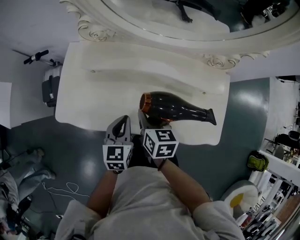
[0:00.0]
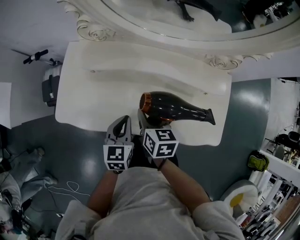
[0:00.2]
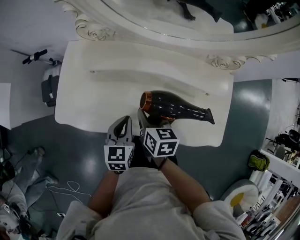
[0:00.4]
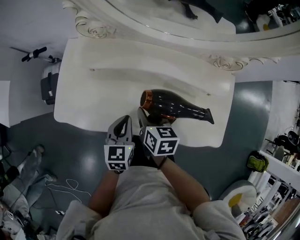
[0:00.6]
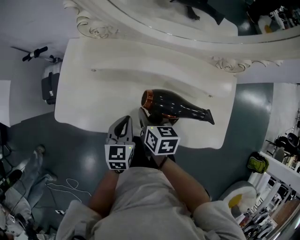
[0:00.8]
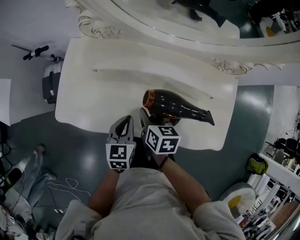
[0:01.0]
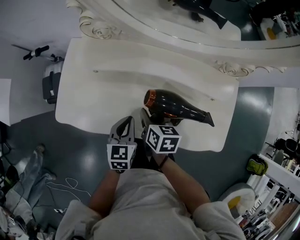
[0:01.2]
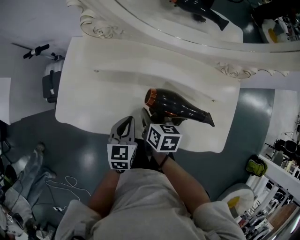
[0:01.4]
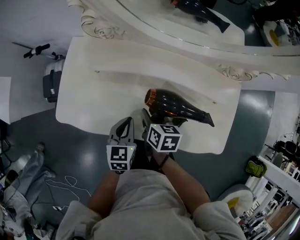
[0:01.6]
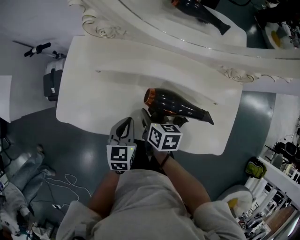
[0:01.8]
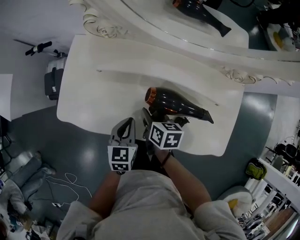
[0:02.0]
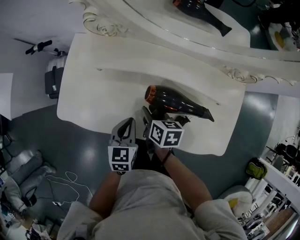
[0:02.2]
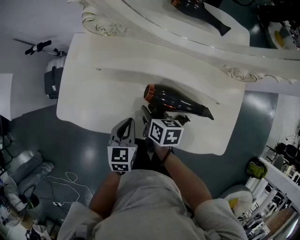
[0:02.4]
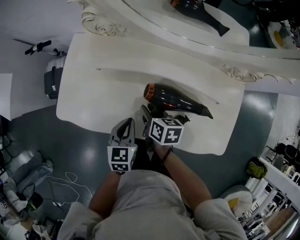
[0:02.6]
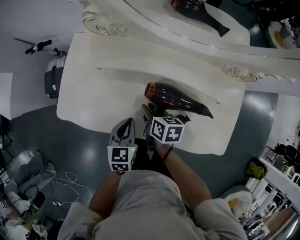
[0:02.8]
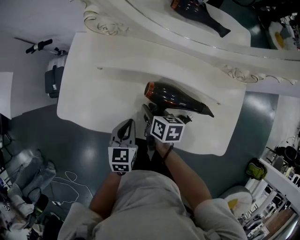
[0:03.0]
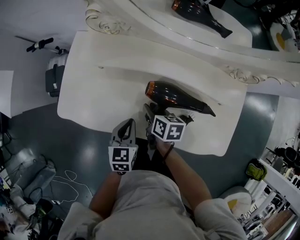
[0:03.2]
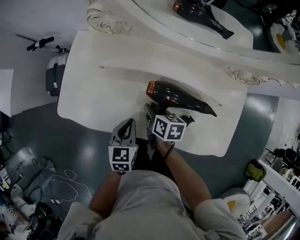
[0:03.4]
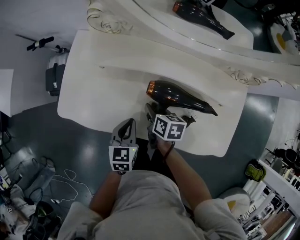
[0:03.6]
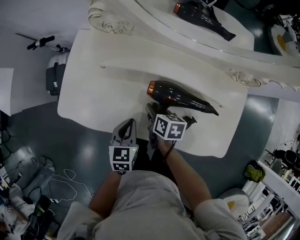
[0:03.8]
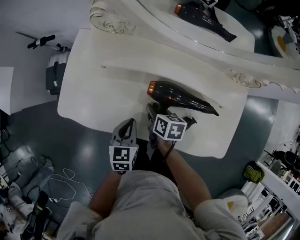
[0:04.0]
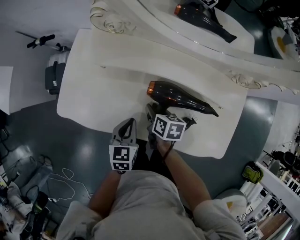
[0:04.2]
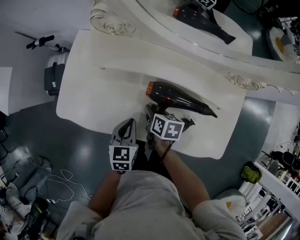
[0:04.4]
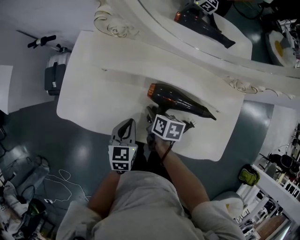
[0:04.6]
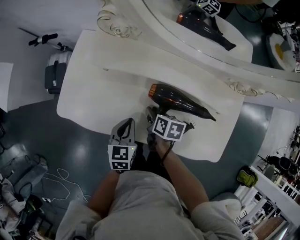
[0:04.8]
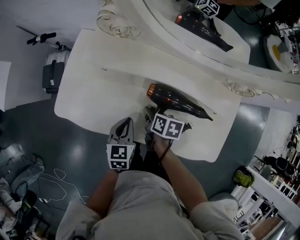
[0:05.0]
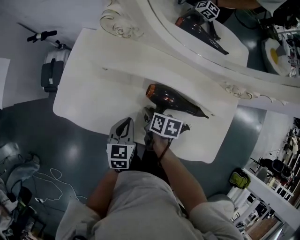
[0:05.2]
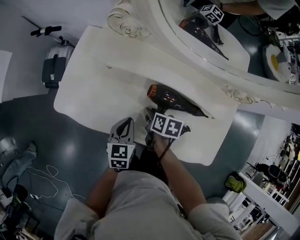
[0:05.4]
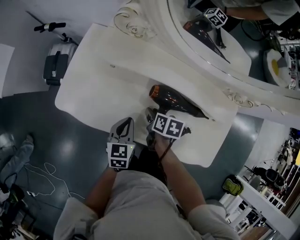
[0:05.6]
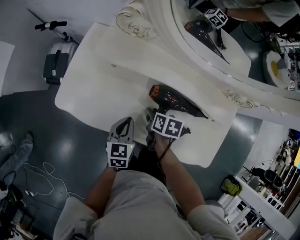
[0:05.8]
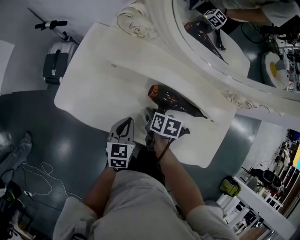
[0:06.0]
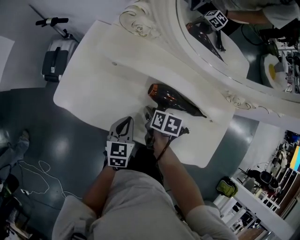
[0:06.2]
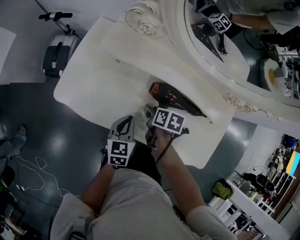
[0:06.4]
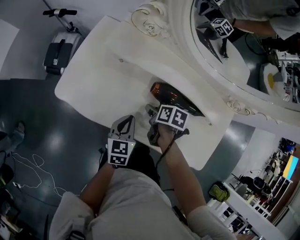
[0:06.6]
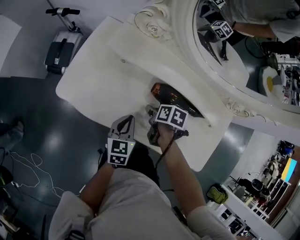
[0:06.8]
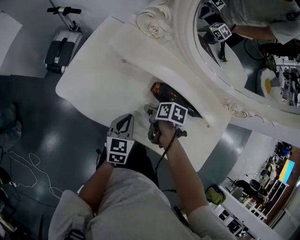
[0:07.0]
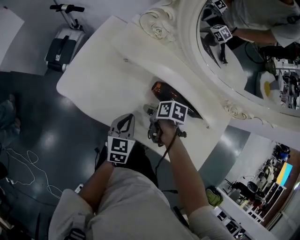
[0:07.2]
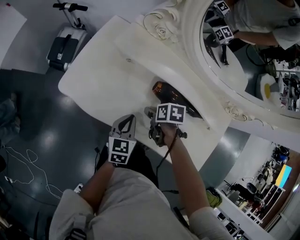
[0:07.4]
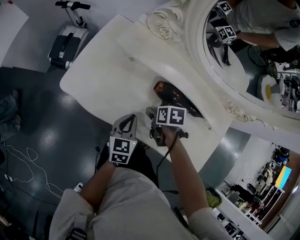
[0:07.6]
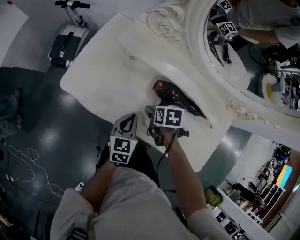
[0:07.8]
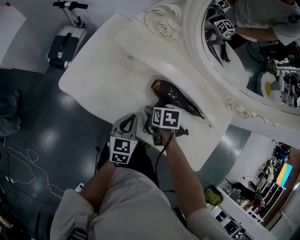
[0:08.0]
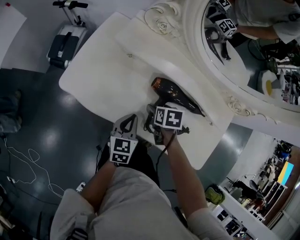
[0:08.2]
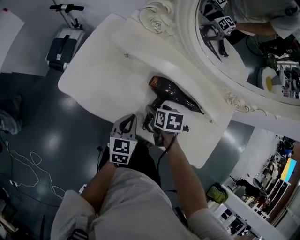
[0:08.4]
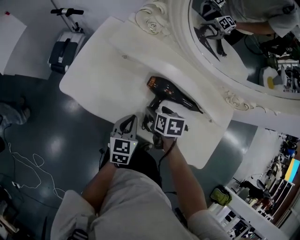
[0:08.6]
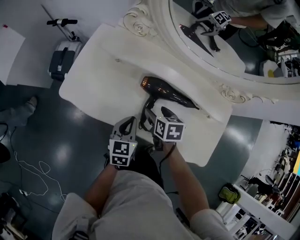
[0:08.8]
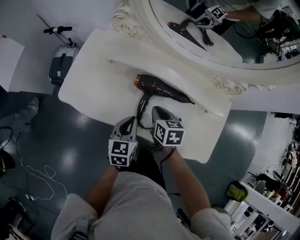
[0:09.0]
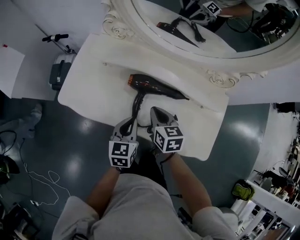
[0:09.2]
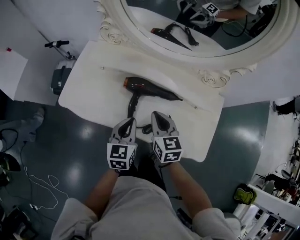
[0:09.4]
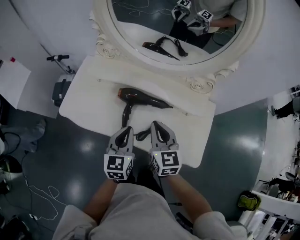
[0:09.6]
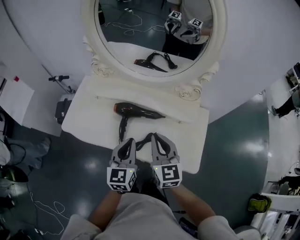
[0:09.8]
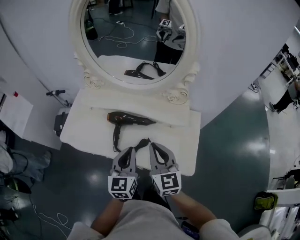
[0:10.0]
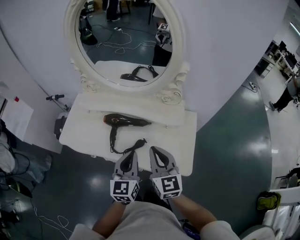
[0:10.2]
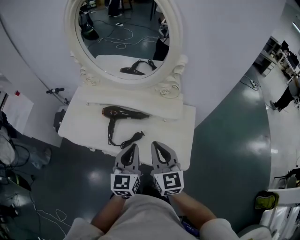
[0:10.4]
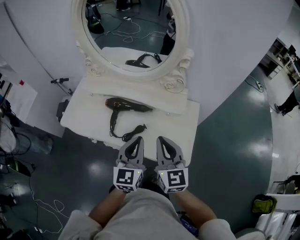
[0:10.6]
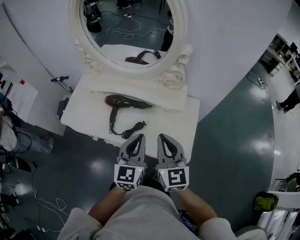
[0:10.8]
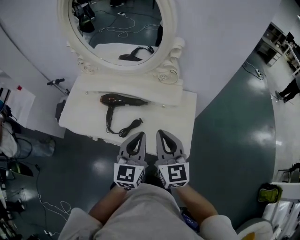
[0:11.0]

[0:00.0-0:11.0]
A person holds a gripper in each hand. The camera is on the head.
0:00.0 to 0:01.6: The two grippers go approximately 5 cm downward.
0:01.6 to 0:06.2: The grippers stay close to where they were, moving slightly.
0:06.2 to 0:07.8: The right gripper rotates some 20 degrees, and opens.
0:07.8 to 0:09.4: Both grippers travel together upward, to the right and backward, roughly 20 cm. The right gripper angles its fingers upward, by some 40 degrees, and closes its fingers.
0:09.4 to 0:11.0: Both grippers move to the right, upward and backward, approximately 30 cm. The right gripper swivels about 30 degrees. Meanwhile the left gripper swivels some 20 degrees.

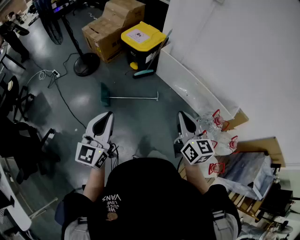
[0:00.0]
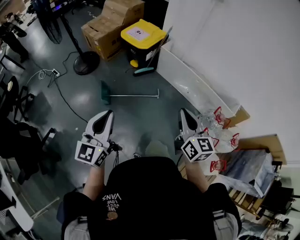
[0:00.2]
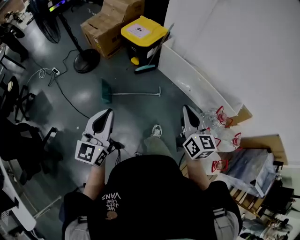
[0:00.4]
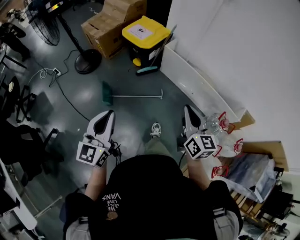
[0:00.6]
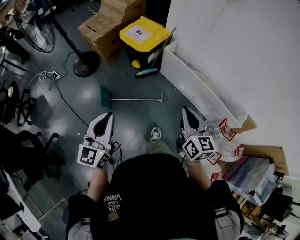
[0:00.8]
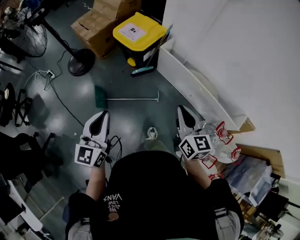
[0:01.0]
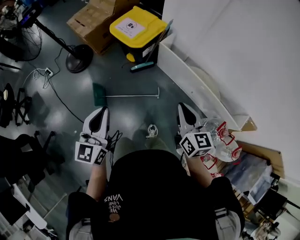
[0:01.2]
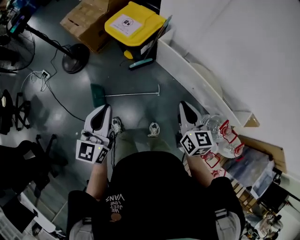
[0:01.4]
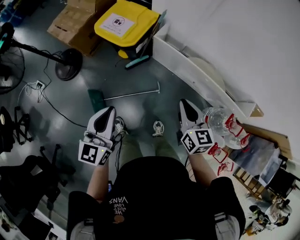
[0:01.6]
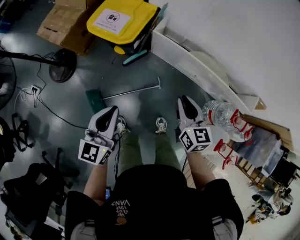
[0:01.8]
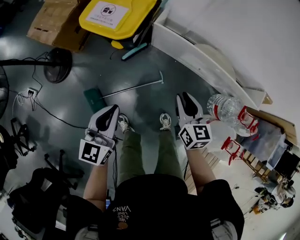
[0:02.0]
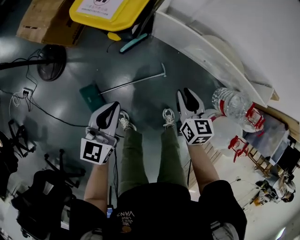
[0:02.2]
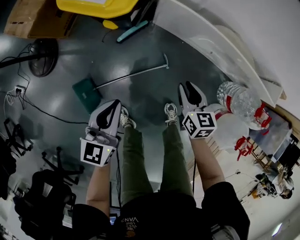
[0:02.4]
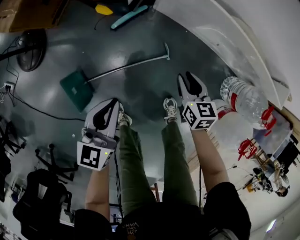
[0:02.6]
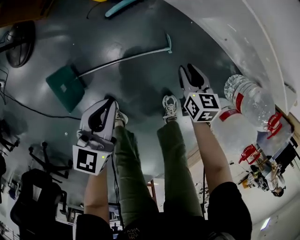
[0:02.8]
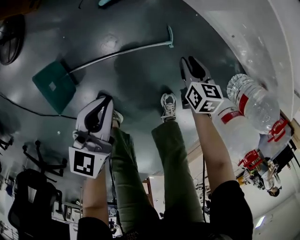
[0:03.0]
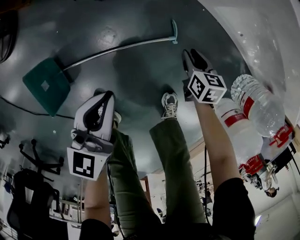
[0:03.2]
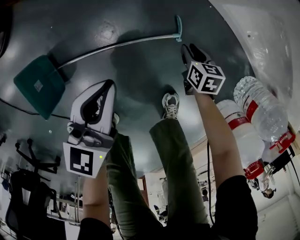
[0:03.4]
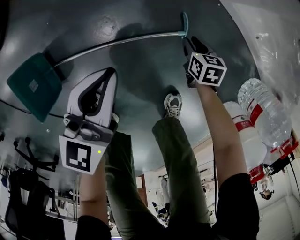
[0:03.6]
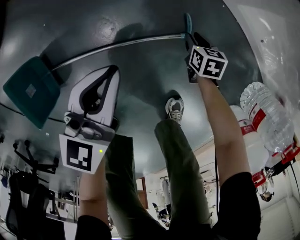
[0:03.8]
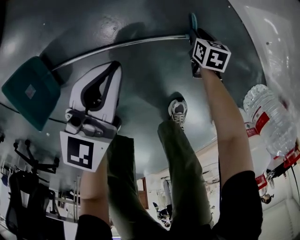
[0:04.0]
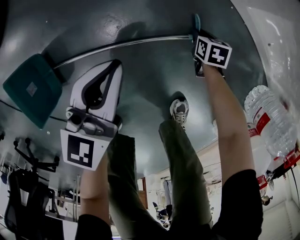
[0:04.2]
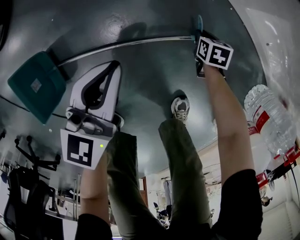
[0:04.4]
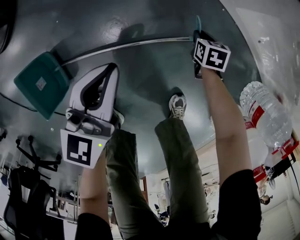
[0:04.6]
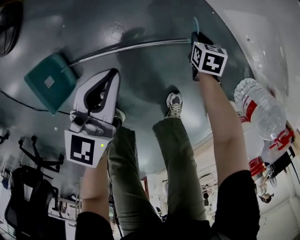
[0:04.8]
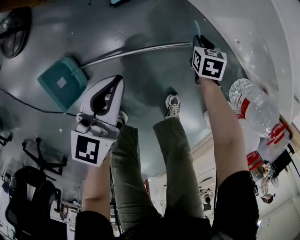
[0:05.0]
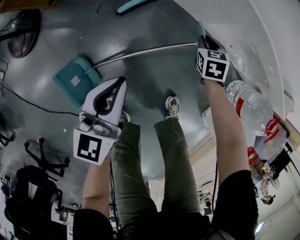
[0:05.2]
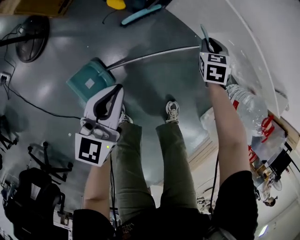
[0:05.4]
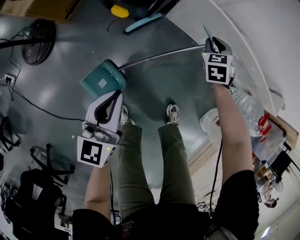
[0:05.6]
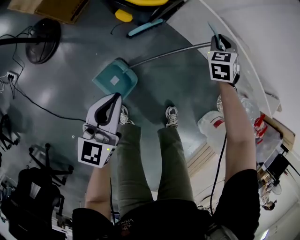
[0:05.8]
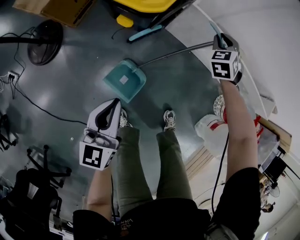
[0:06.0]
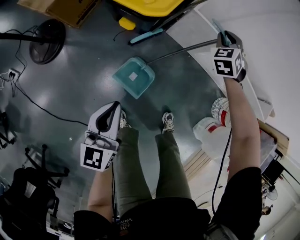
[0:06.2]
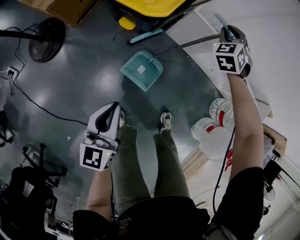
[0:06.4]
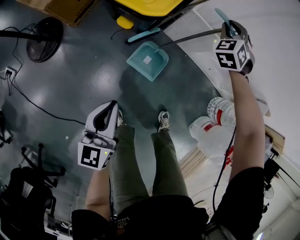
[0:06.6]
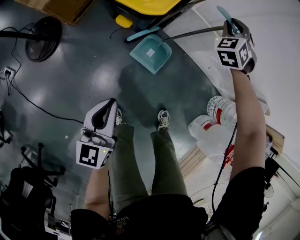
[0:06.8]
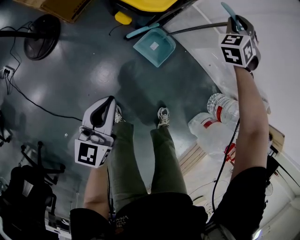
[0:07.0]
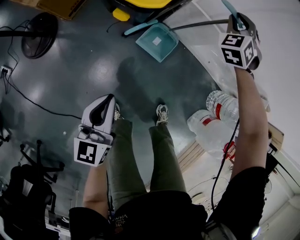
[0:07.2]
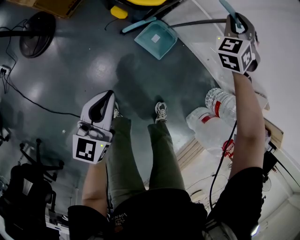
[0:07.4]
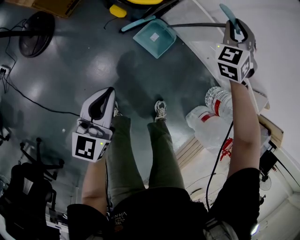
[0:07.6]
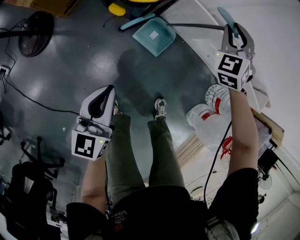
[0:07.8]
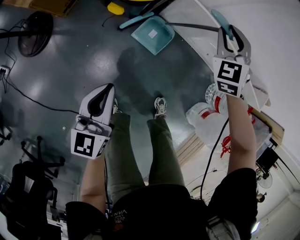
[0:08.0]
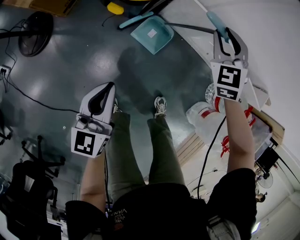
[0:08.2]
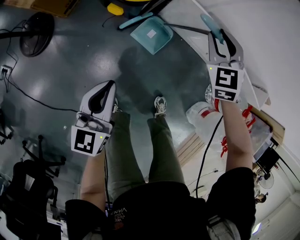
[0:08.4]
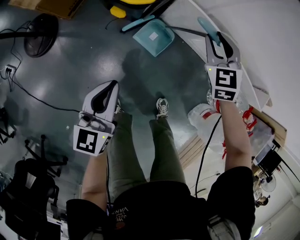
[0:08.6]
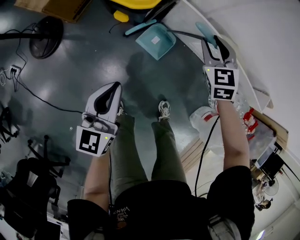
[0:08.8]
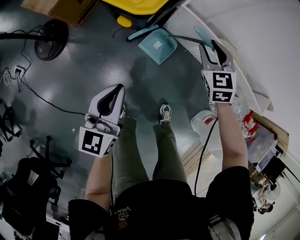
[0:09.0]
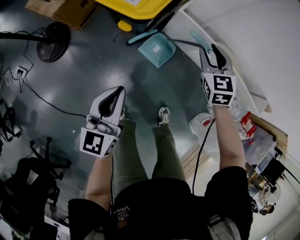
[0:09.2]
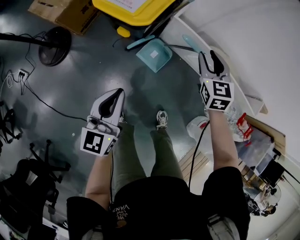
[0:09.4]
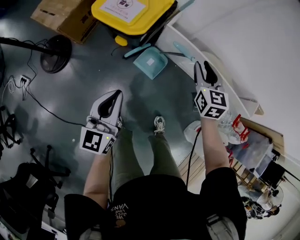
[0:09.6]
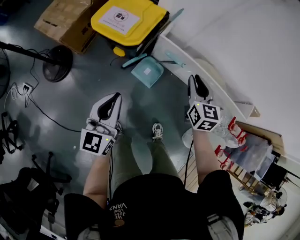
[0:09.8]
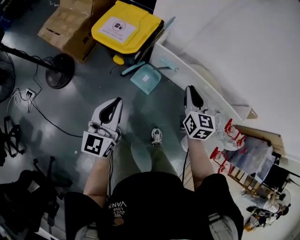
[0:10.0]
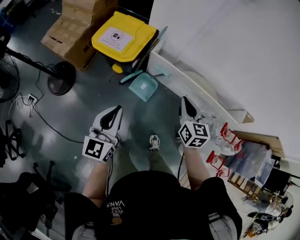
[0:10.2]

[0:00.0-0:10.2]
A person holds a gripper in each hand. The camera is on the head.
0:00.0 to 0:01.4: The grippers both shift forward by about 30 cm.
0:01.4 to 0:03.0: Both grippers travel together downward, roughly 60 cm. The left gripper turns by roughly 30 degrees; the right gripper points its fingers some 30 degrees further downward, and opens up.
0:03.0 to 0:04.4: The right gripper goes about 25 cm downward, and rotates about 20 degrees; the left gripper travels downward by some 15 cm.
0:04.4 to 0:05.8: The left gripper is displaced upward by approximately 30 cm. Meanwhile the right gripper shifts about 50 cm upward, and swivels approximately 40 degrees.
0:05.8 to 0:07.2: The right gripper moves upward and forward, some 15 cm, and turns by about 30 degrees.
0:07.2 to 0:08.8: The left gripper moves upward, some 5 cm. Meanwhile the right gripper goes about 15 cm backward, and rotates about 40 degrees.
0:08.8 to 0:10.2: The right gripper goes some 25 cm upward, backward and to the right, swivels approximately 40 degrees, and closes up. The left gripper goes roughly 20 cm upward and to the right.

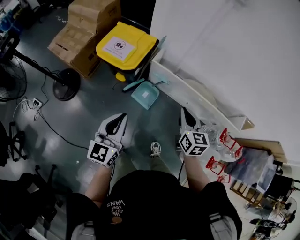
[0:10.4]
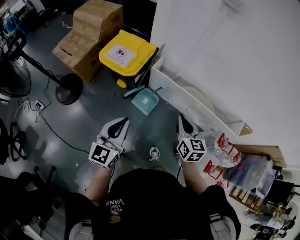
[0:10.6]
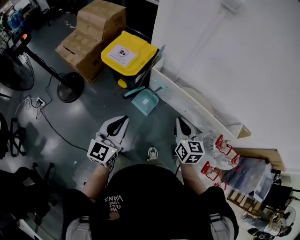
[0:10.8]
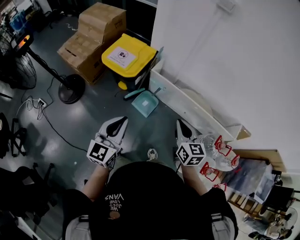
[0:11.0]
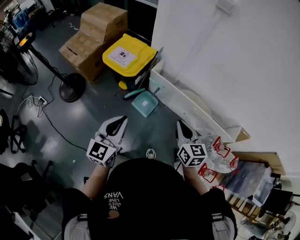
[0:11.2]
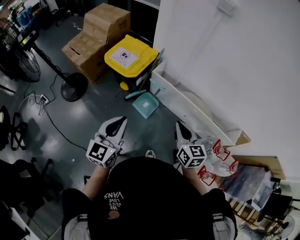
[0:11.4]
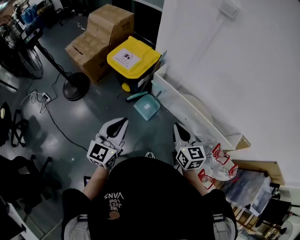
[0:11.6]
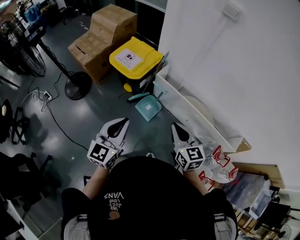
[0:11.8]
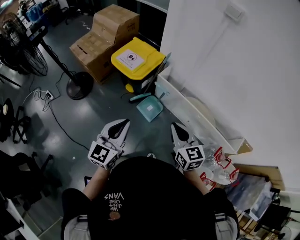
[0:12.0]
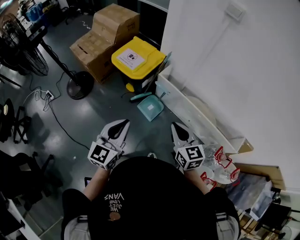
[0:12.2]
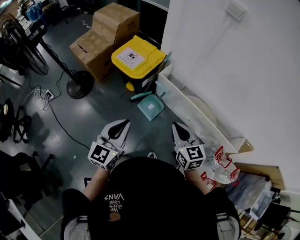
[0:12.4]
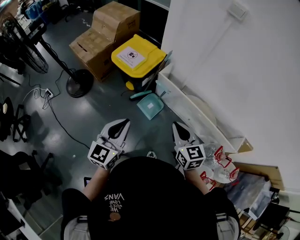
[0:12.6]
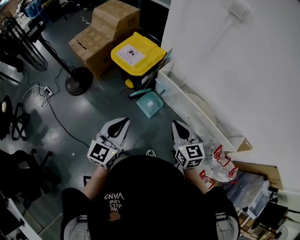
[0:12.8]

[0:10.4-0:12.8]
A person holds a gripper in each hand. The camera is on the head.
0:10.4 to 0:11.6: The left gripper heads to the right and backward, covering about 10 cm. Meanwhile the right gripper goes about 5 cm backward.
0:11.6 to 0:12.8: There are only small adjustments of the grippers.
